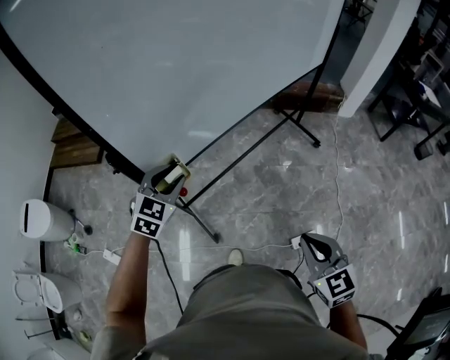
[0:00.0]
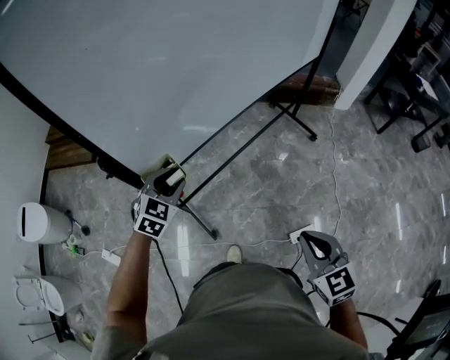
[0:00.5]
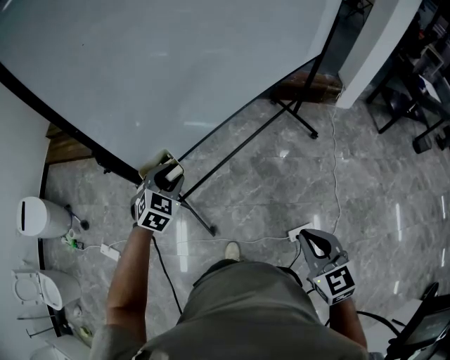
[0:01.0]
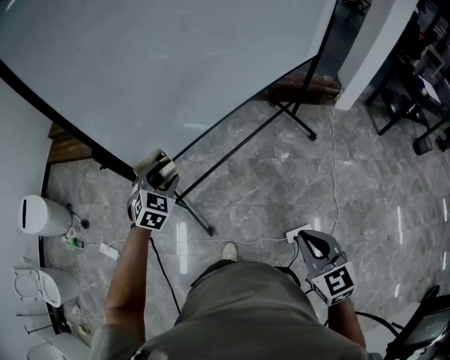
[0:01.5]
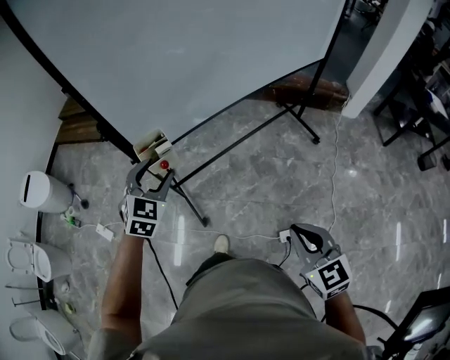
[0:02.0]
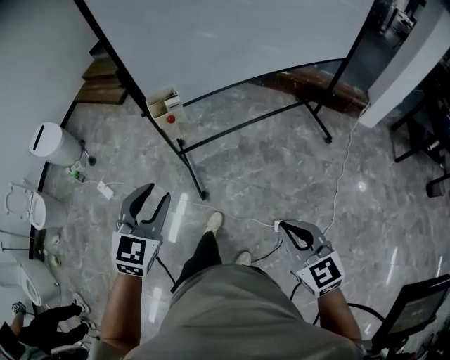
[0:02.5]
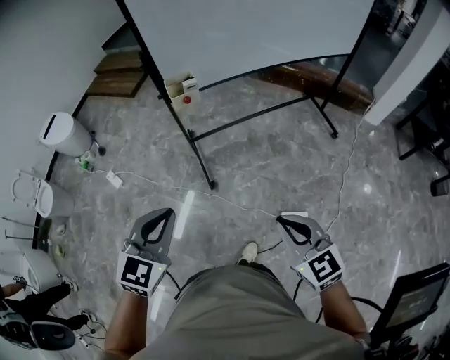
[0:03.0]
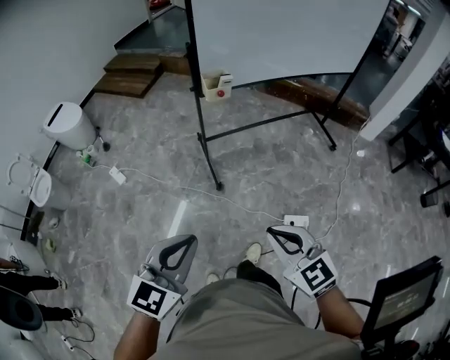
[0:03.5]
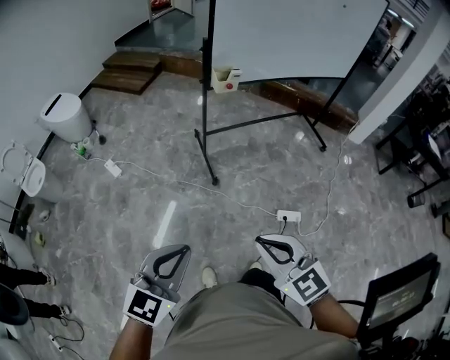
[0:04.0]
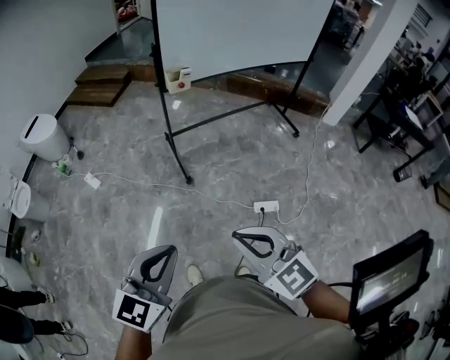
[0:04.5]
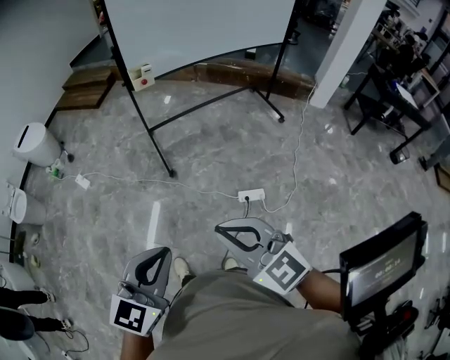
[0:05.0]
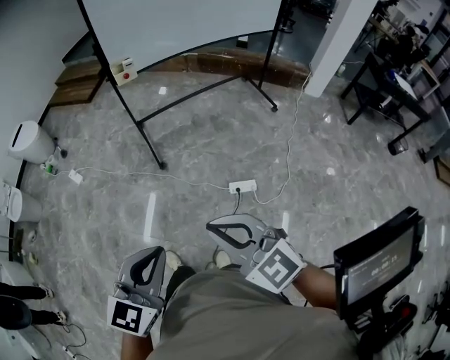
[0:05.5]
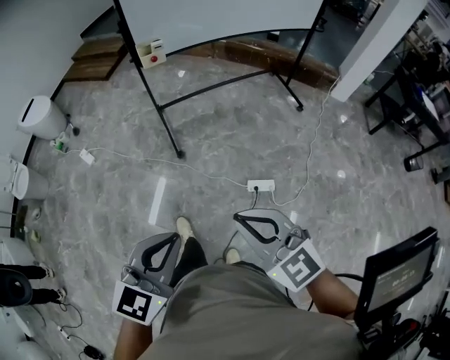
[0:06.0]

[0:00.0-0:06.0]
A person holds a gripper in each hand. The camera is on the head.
0:00.0 to 0:02.0: The left gripper shifts about 10 cm backward, and opens up, while the right gripper heads to the right, covering approximately 5 cm.
0:02.0 to 0:04.0: The pair of grippers is taken backward and to the left, about 60 cm. The right gripper swivels some 30 degrees, while the left gripper turns by roughly 30 degrees, and closes its fingers.
0:04.0 to 0:06.0: The two grippers go roughly 25 cm to the right.

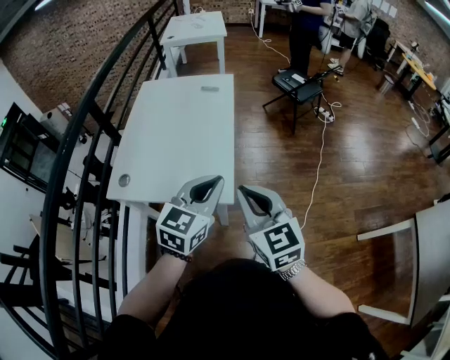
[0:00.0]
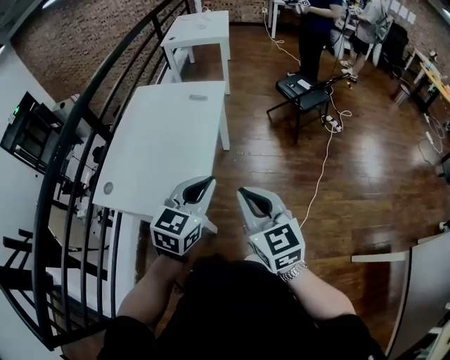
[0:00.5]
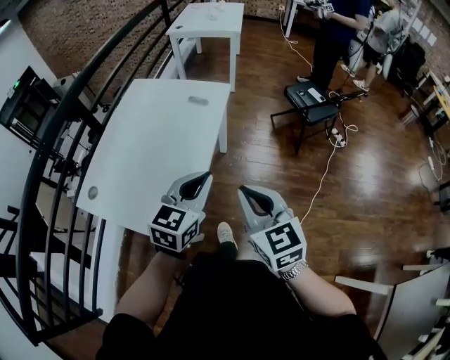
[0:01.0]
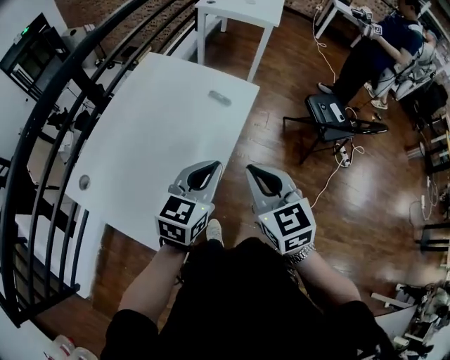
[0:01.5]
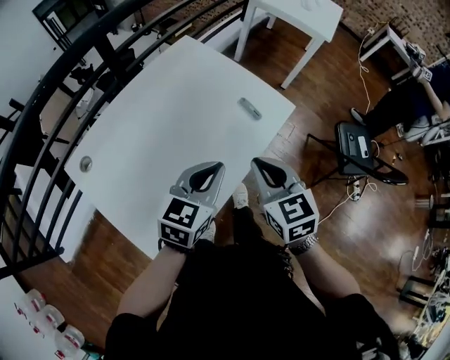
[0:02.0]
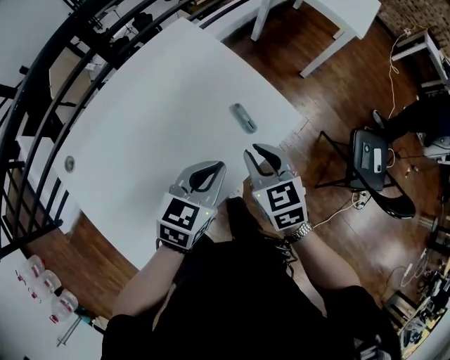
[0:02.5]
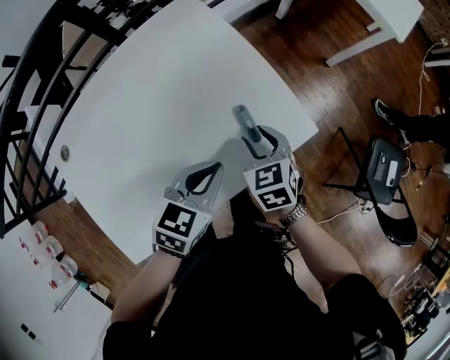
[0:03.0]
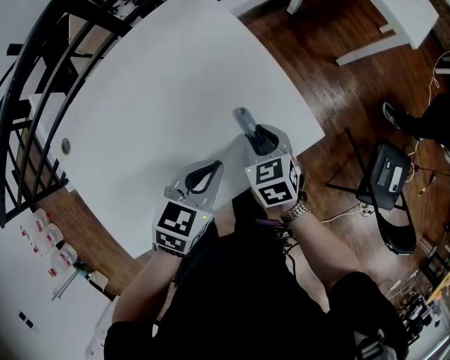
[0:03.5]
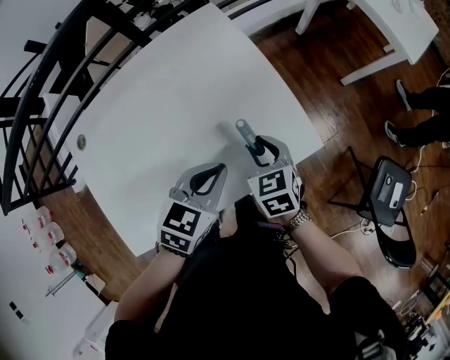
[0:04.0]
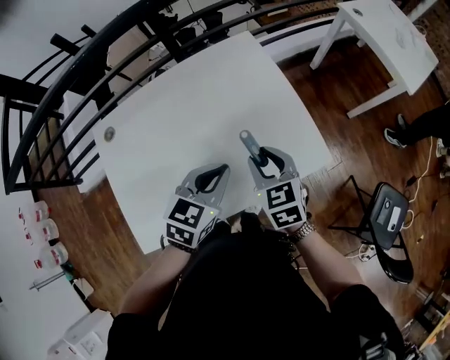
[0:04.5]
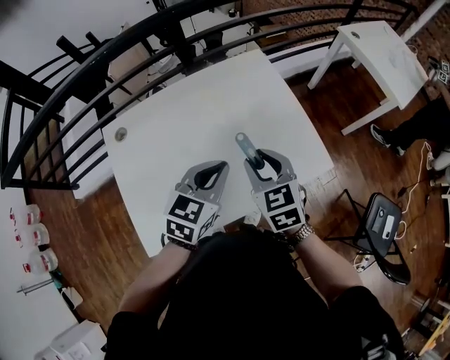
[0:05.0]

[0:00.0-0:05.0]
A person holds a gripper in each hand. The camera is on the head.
0:00.0 to 0:02.5: Both grippers are carried some 60 cm. The right gripper rotates about 50 degrees. Meanwhile the left gripper turns by approximately 50 degrees.
0:02.5 to 0:05.0: The right gripper moves to the left, approximately 10 cm, and reaches roughly 15 cm downward, then returns, while the left gripper heads to the left and upward, covering approximately 10 cm, and changes its angle by roughly 20 degrees.

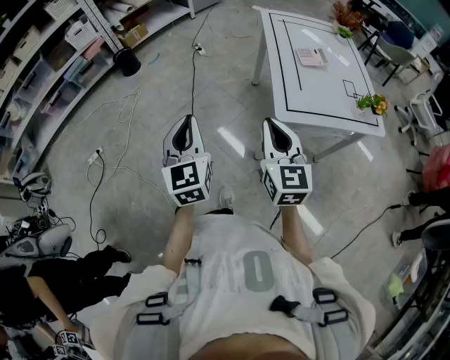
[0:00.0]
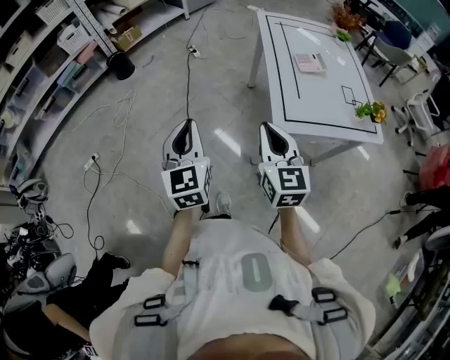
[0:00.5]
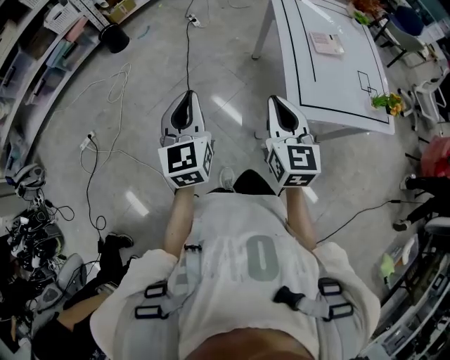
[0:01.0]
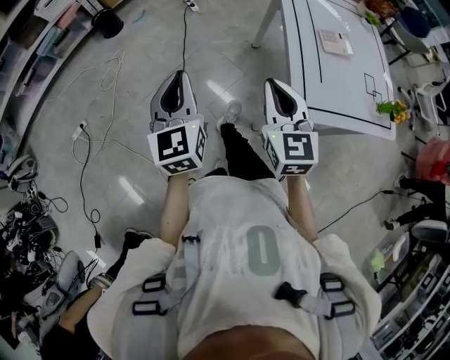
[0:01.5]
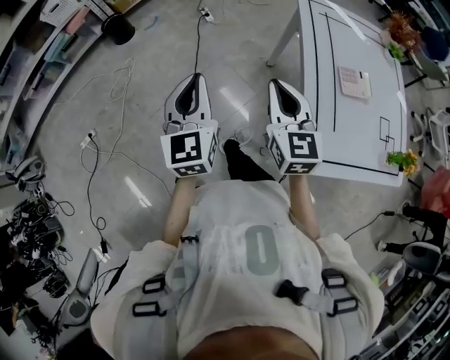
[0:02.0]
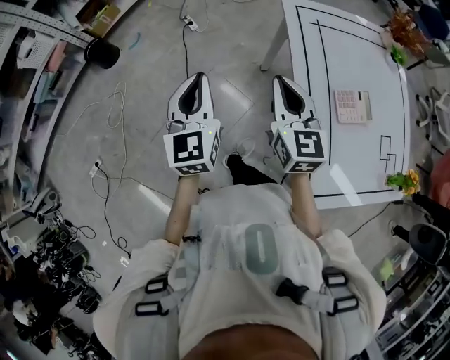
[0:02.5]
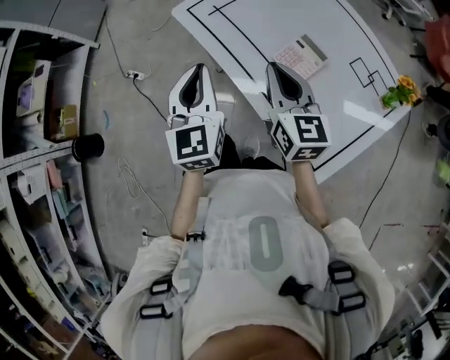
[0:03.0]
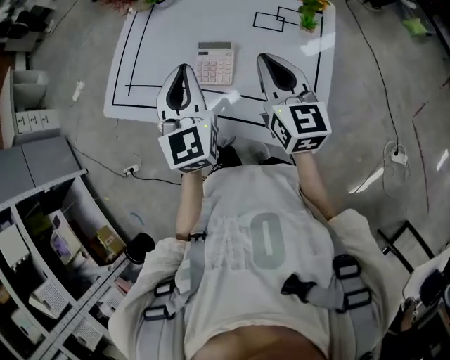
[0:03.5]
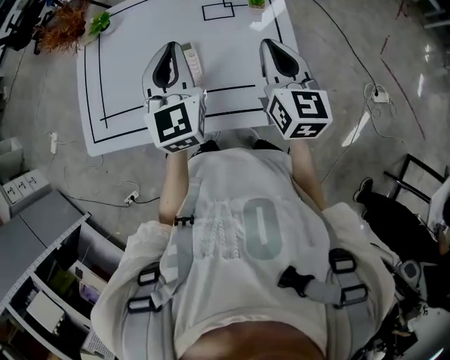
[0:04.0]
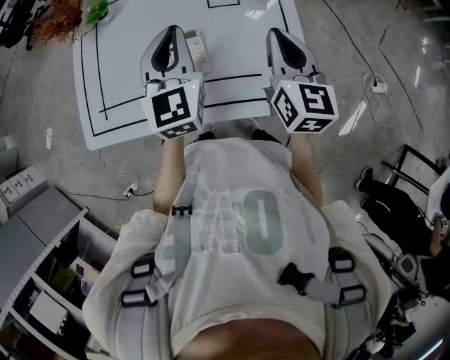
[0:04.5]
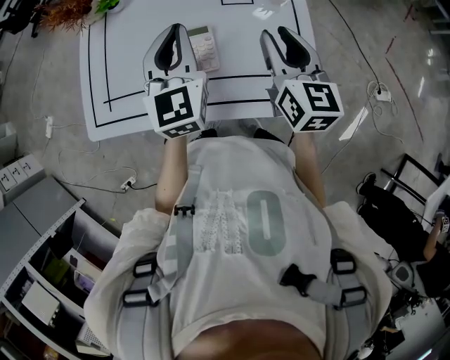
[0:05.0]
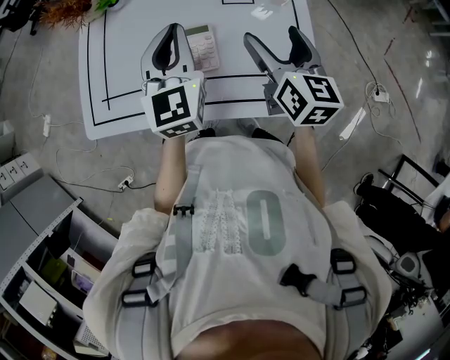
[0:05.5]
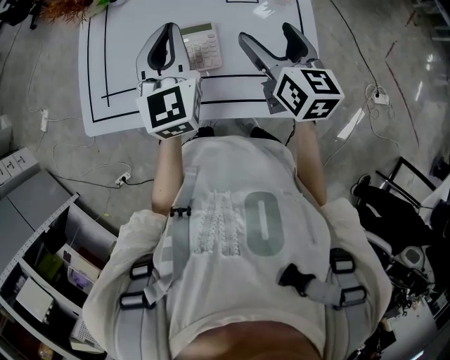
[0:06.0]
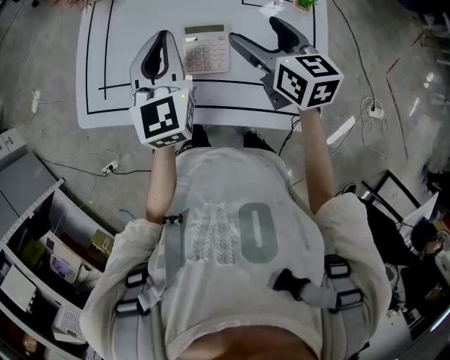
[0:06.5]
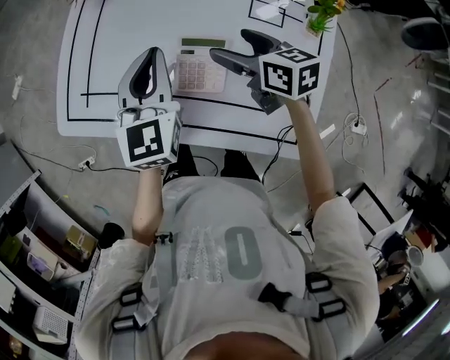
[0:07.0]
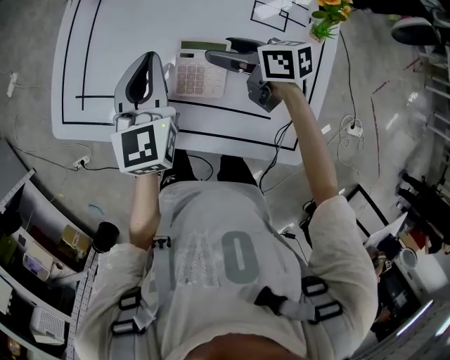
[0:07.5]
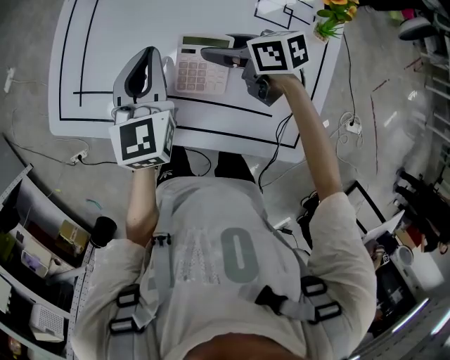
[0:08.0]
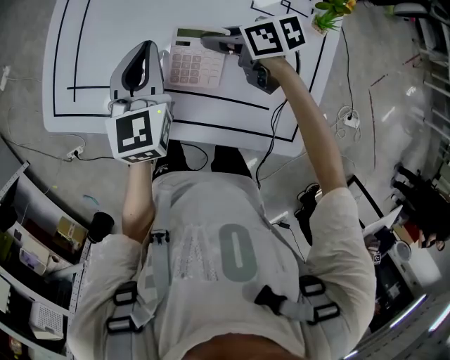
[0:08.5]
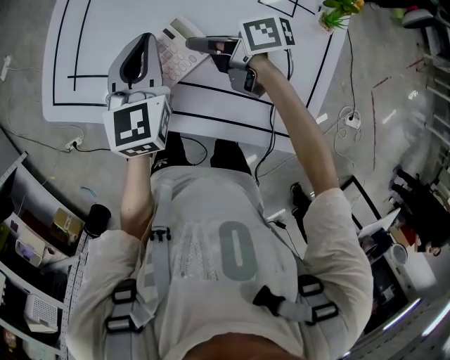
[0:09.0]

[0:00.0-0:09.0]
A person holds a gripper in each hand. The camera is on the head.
0:00.0 to 0:02.0: Both grippers travel together forward, some 35 cm.
0:02.0 to 0:04.5: The right gripper changes place by approximately 35 cm, and changes its angle by some 100 degrees; the left gripper changes place by some 50 cm, and turns by approximately 100 degrees.
0:04.5 to 0:07.0: The right gripper moves about 25 cm, rotates roughly 50 degrees, and opens its fingers, while the left gripper shifts by about 15 cm.
0:07.0 to 0:09.0: The right gripper goes roughly 10 cm to the left and downward, turns by approximately 40 degrees, and closes.

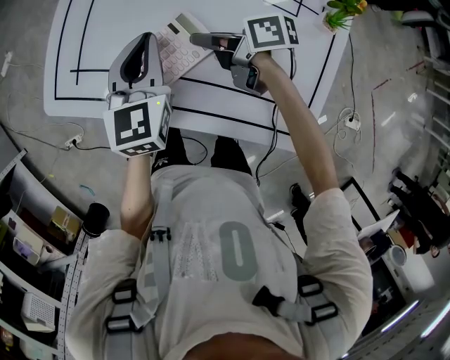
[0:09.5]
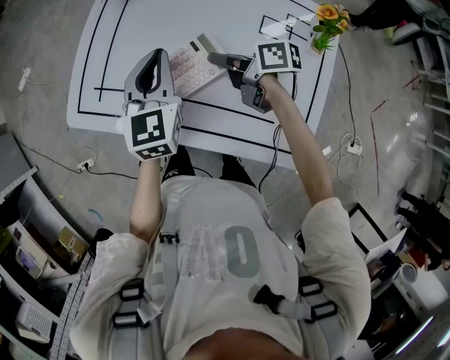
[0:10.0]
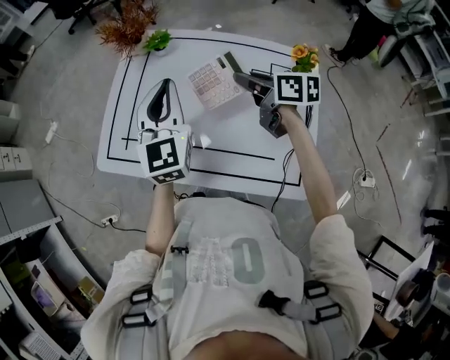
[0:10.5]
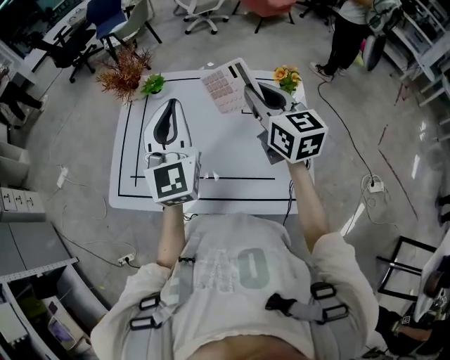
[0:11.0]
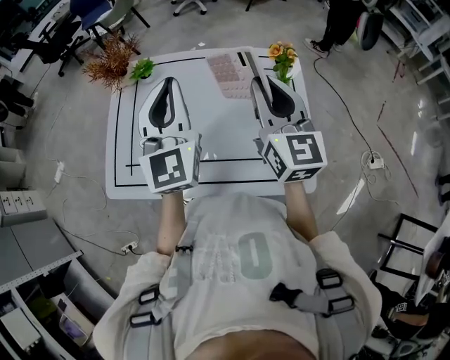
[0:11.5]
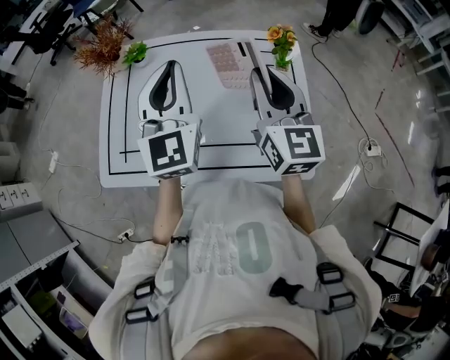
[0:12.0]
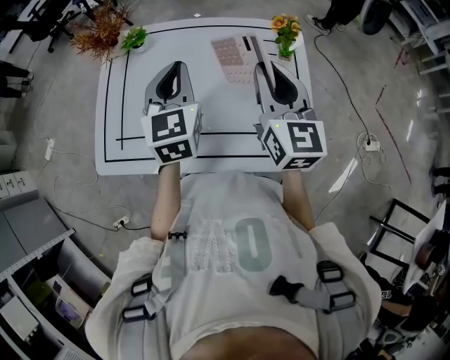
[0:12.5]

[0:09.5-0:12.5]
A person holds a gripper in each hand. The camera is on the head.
0:09.5 to 0:11.0: Both grippers move upward, roughly 25 cm. The left gripper turns by roughly 30 degrees; the right gripper swivels some 80 degrees.
0:11.0 to 0:12.5: The left gripper is displaced downward by roughly 10 cm, and changes its angle by about 20 degrees, while the right gripper is displaced backward by roughly 5 cm.

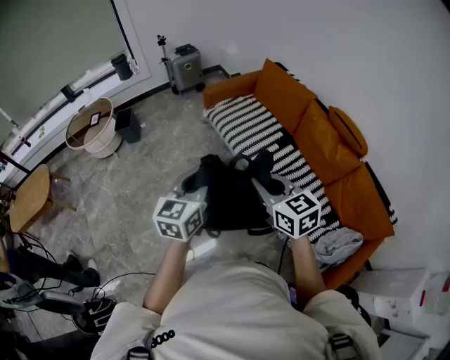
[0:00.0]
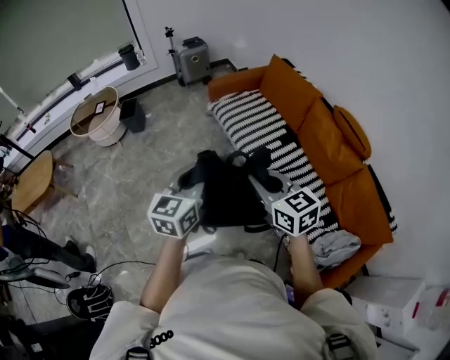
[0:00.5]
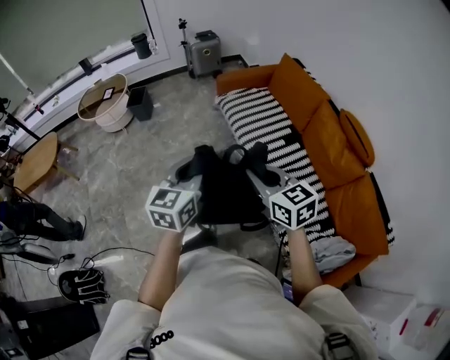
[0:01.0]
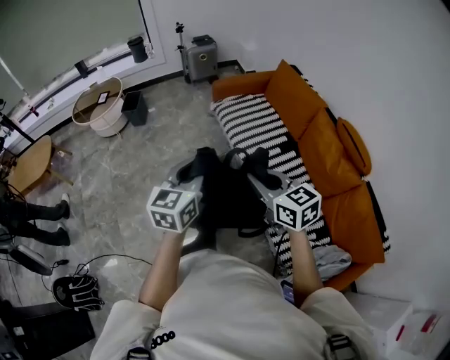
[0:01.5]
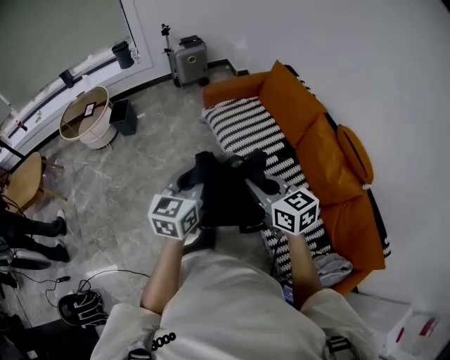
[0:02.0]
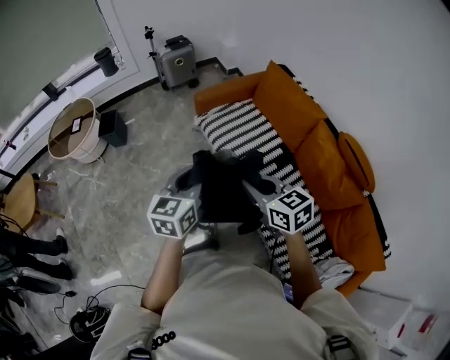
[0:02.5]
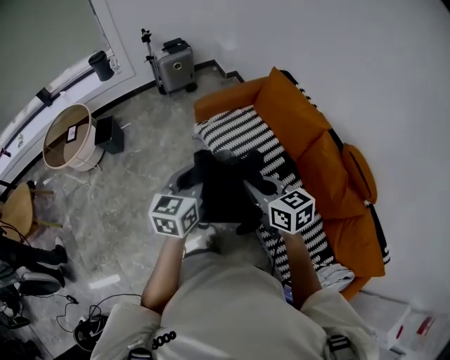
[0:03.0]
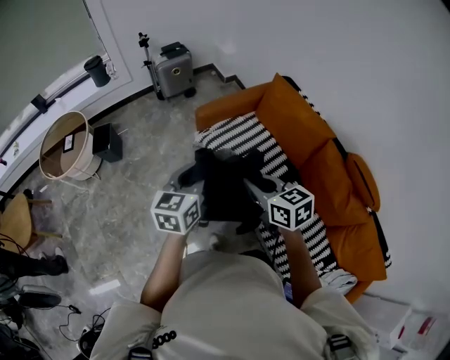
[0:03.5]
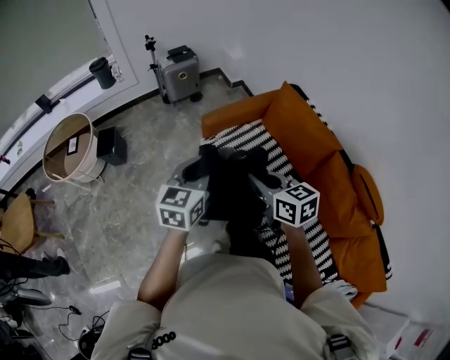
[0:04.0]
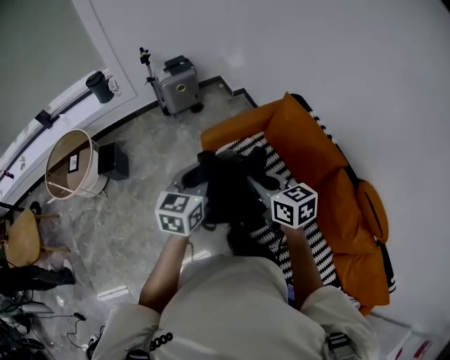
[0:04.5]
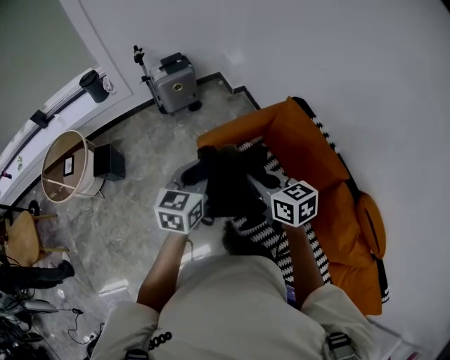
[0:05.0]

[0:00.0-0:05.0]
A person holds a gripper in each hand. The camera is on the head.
0:00.0 to 0:02.5: Both grippers travel together forward, roughly 25 cm.
0:02.5 to 0:05.0: The pair of grippers is taken forward, some 40 cm.
